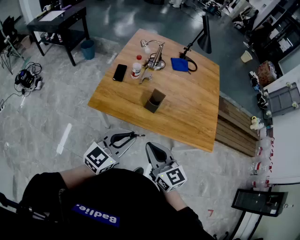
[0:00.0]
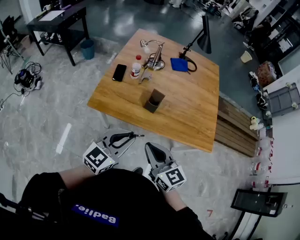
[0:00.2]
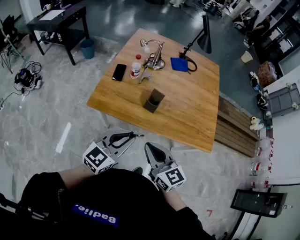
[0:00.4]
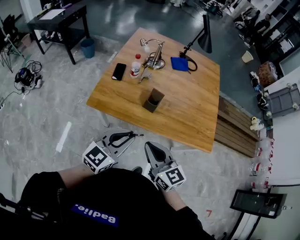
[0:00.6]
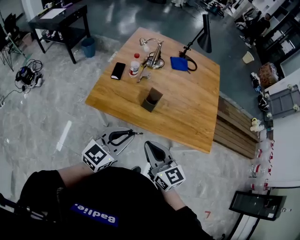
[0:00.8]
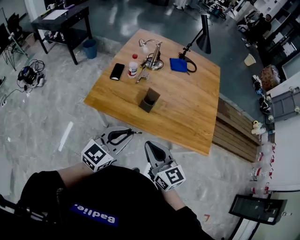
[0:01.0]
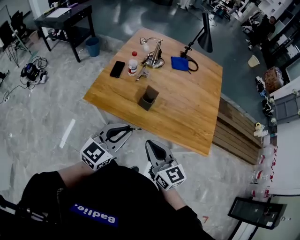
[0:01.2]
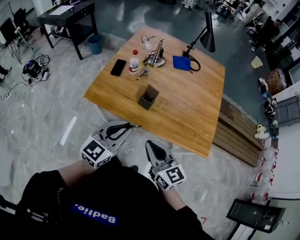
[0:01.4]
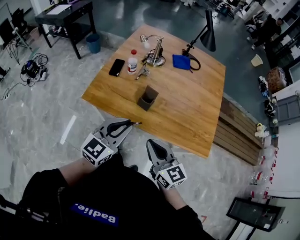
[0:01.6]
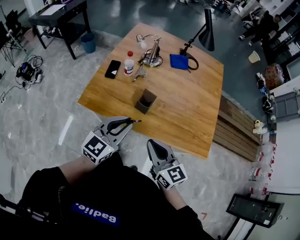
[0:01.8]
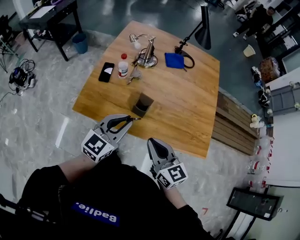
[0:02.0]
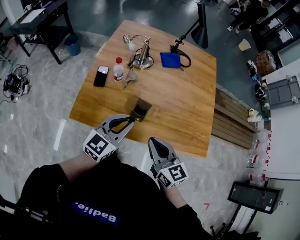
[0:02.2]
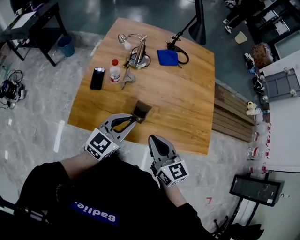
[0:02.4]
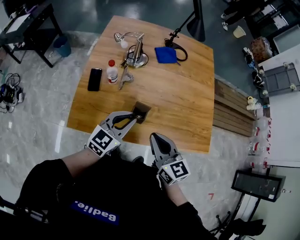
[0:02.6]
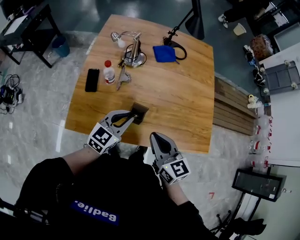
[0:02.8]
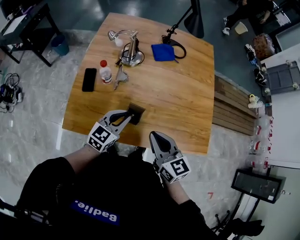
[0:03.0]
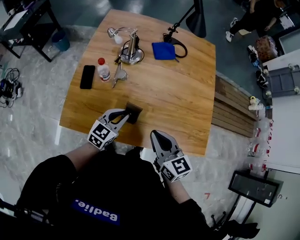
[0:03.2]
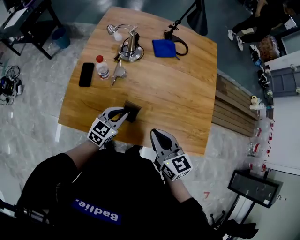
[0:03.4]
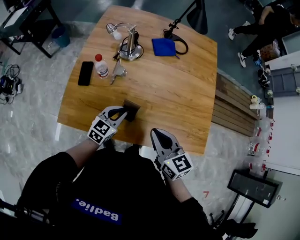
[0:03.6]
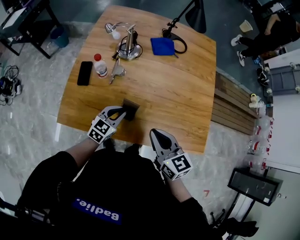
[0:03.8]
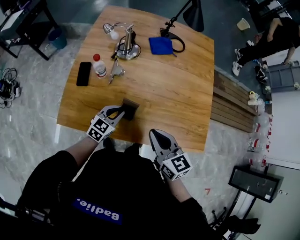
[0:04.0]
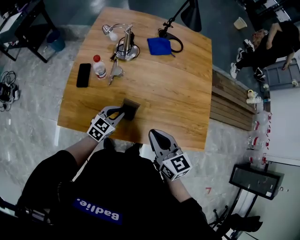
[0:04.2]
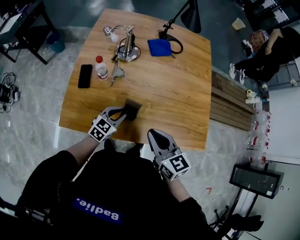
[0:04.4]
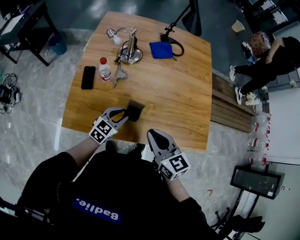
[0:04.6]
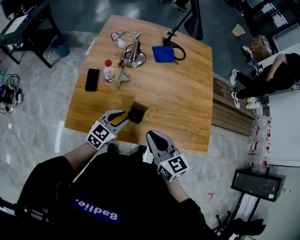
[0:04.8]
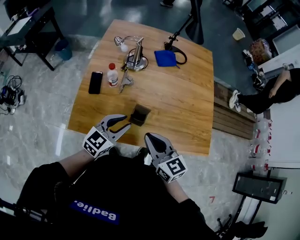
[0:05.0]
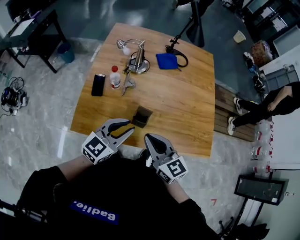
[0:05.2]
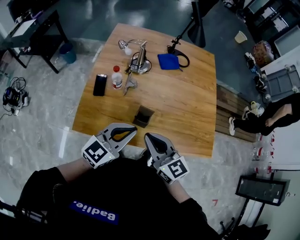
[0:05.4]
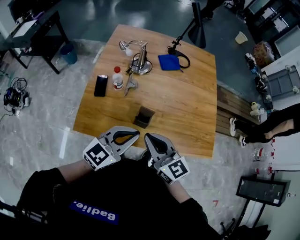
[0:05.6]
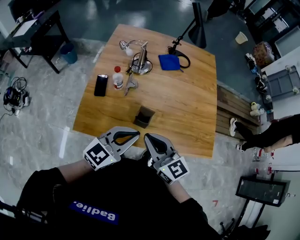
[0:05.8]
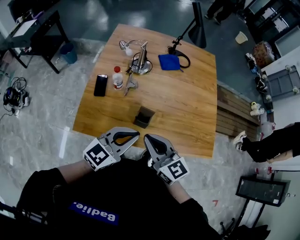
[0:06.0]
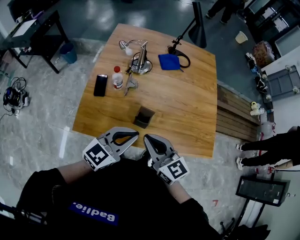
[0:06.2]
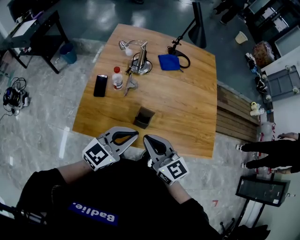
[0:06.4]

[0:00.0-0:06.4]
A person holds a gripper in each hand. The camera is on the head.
0:00.0 to 0:01.6: The left gripper goes about 10 cm to the right and forward. The right gripper is displaced to the right by some 10 cm.
0:01.6 to 0:03.2: The right gripper shifts some 20 cm forward. The left gripper is displaced forward and downward by some 30 cm.
0:03.2 to 0:04.8: The right gripper shifts by approximately 5 cm.
0:04.8 to 0:06.4: The right gripper ends up approximately 5 cm from where it was; the left gripper moves upward and backward, approximately 15 cm, and closes up.

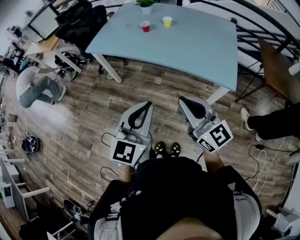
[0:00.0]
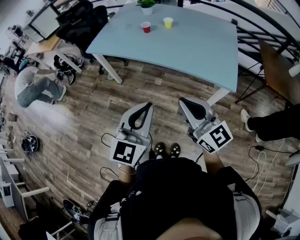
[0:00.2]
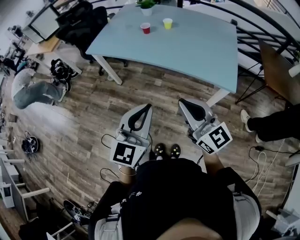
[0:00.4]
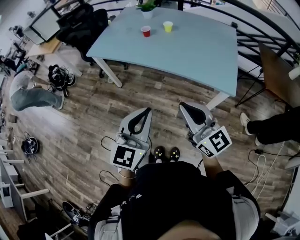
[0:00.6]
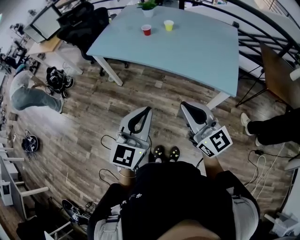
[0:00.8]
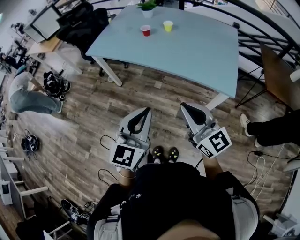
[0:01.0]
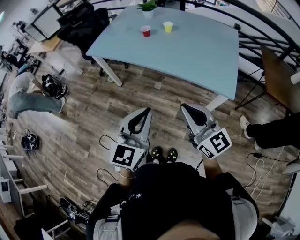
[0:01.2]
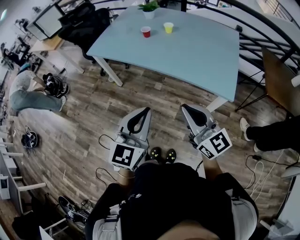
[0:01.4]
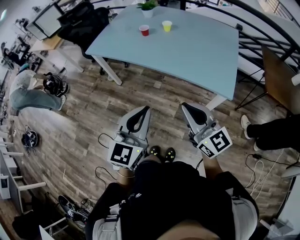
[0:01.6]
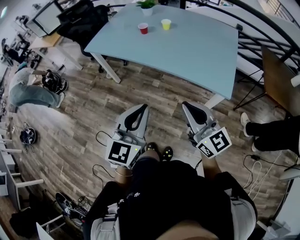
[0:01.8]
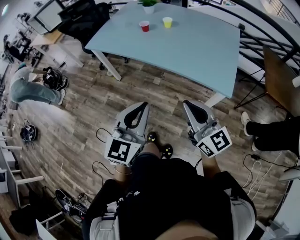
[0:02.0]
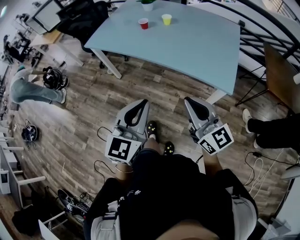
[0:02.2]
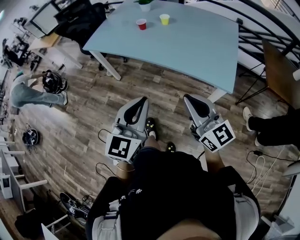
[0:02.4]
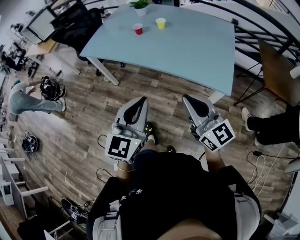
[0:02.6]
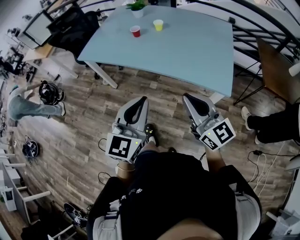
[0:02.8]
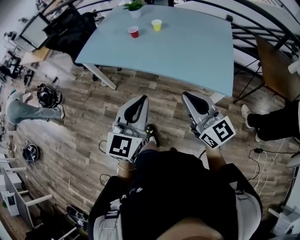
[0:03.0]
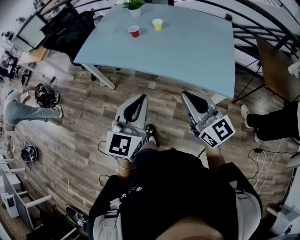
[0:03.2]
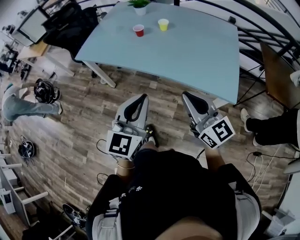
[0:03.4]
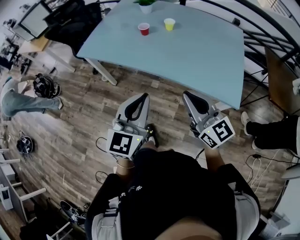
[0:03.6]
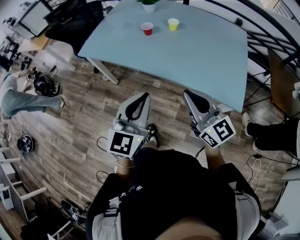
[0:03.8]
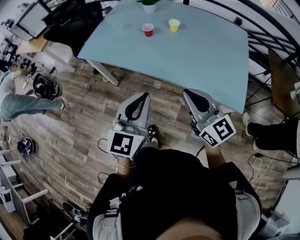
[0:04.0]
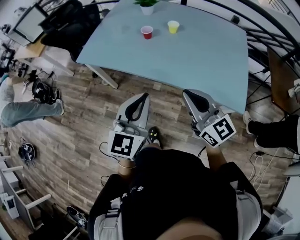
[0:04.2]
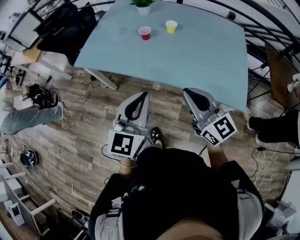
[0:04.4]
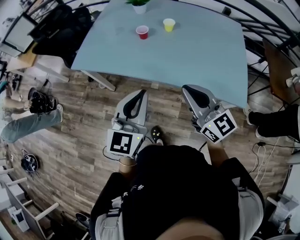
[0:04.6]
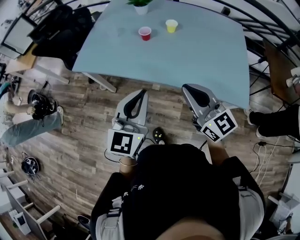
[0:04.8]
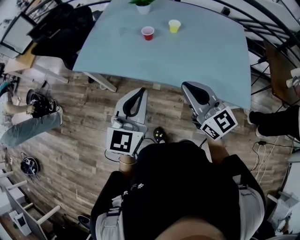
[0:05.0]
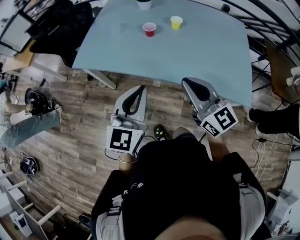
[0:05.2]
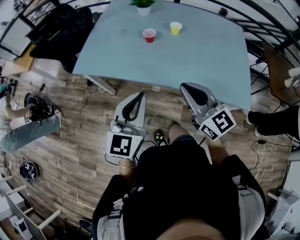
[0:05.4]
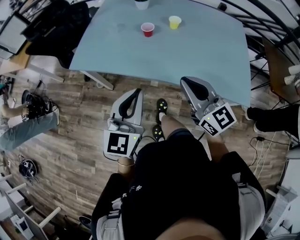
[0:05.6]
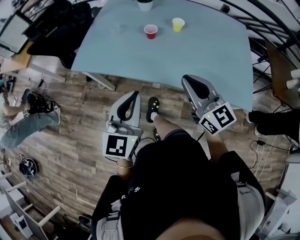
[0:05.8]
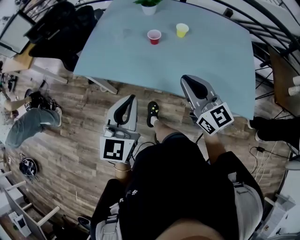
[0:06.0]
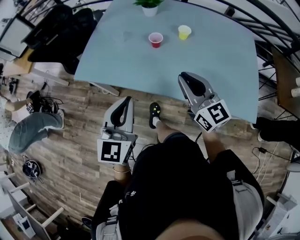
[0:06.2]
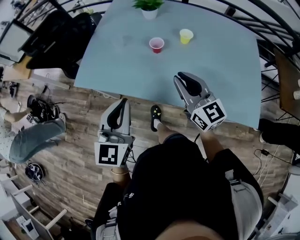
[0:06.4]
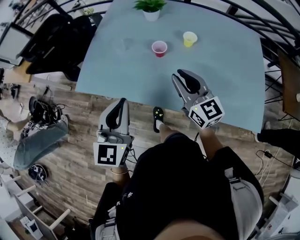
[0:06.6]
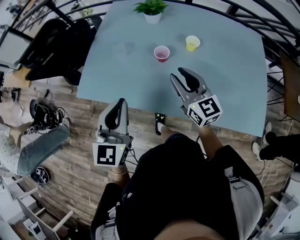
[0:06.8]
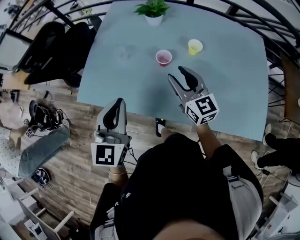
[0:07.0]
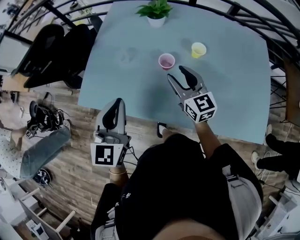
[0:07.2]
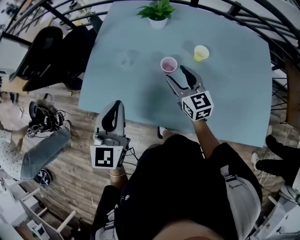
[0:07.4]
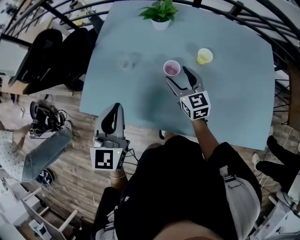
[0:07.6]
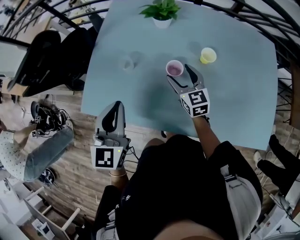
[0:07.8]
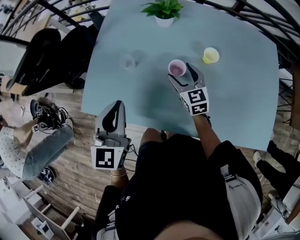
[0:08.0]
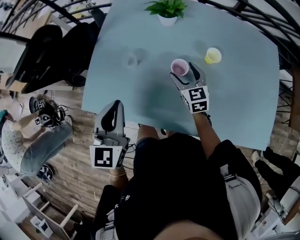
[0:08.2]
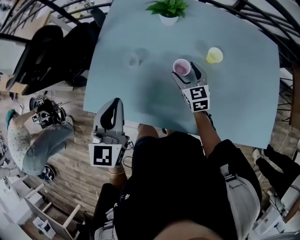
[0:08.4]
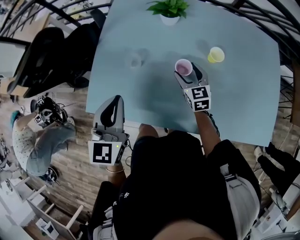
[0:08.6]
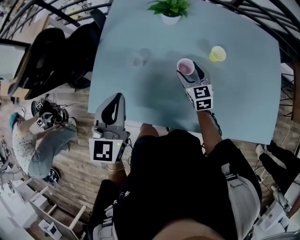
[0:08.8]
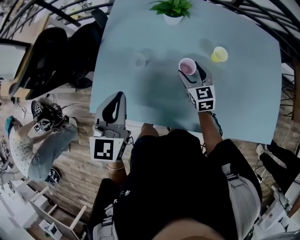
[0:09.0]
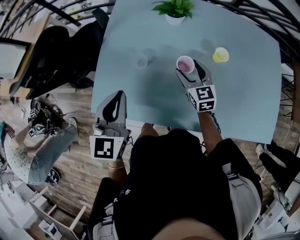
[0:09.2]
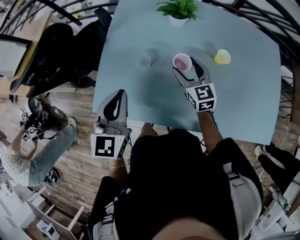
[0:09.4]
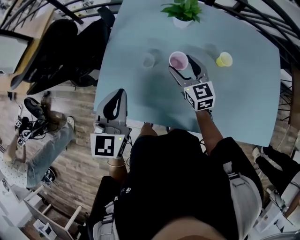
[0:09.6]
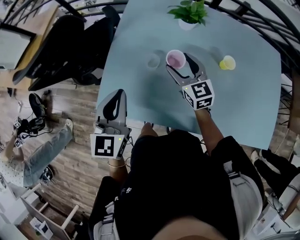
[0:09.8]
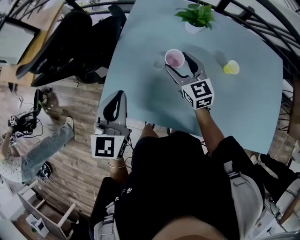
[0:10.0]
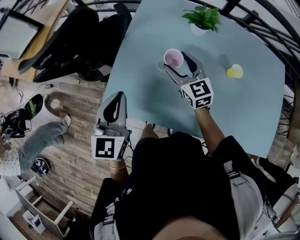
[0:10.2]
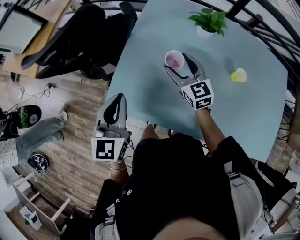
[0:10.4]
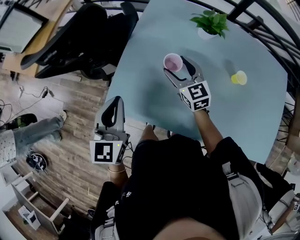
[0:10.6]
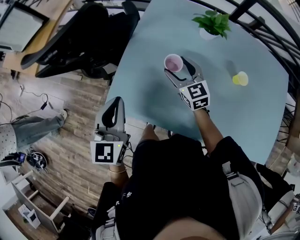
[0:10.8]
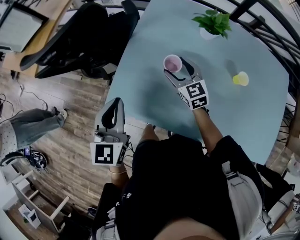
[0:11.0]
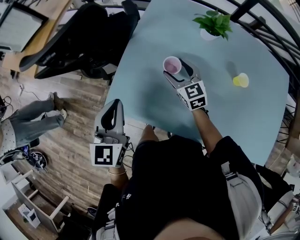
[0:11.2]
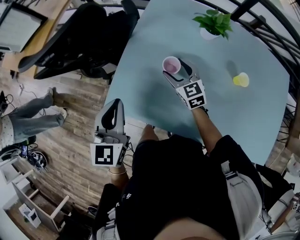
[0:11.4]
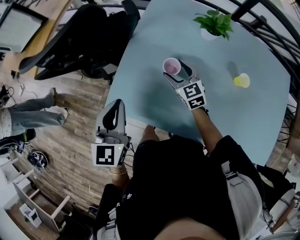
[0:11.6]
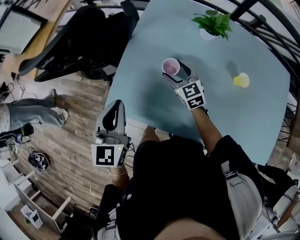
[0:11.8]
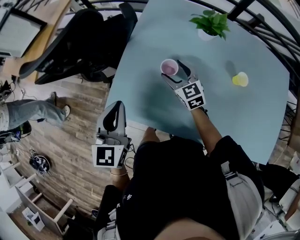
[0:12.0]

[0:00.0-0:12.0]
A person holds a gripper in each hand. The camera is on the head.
0:00.0 to 0:01.6: The right gripper goes some 5 cm to the right.
0:01.6 to 0:03.0: The two grippers go some 5 cm forward.
0:03.0 to 0:04.4: The two grippers go roughly 20 cm forward and to the left.
0:04.4 to 0:06.0: The right gripper heads forward and to the left, covering about 15 cm. Meanwhile the left gripper heads to the left and forward, covering roughly 15 cm.
0:06.0 to 0:07.6: The left gripper moves forward, some 30 cm, while the right gripper is displaced forward and downward by roughly 40 cm, swivels approximately 20 degrees, and opens.
0:07.6 to 0:09.0: The right gripper ends up about 5 cm from where it was; the left gripper heads to the left and forward, covering approximately 10 cm.
0:09.0 to 0:10.4: The left gripper shifts roughly 10 cm to the left. The right gripper travels to the left and upward by roughly 20 cm, and swivels approximately 20 degrees.
0:10.4 to 0:12.0: The right gripper shifts roughly 5 cm downward.

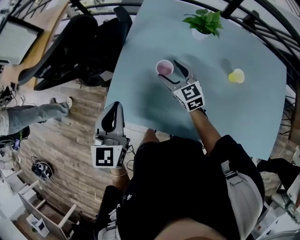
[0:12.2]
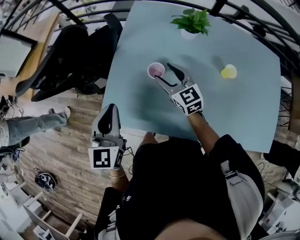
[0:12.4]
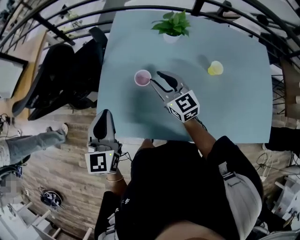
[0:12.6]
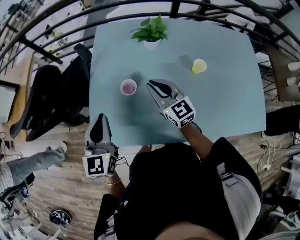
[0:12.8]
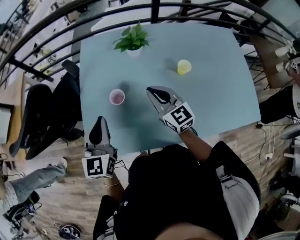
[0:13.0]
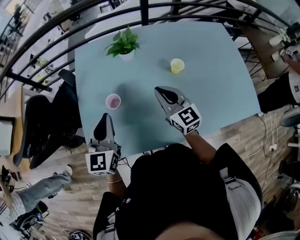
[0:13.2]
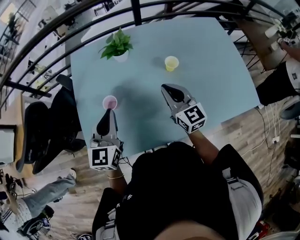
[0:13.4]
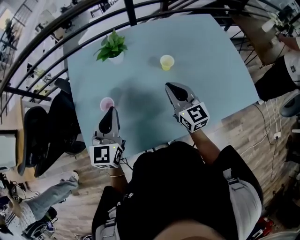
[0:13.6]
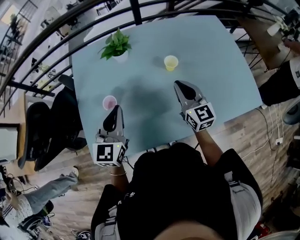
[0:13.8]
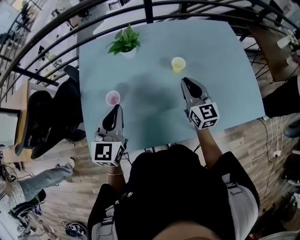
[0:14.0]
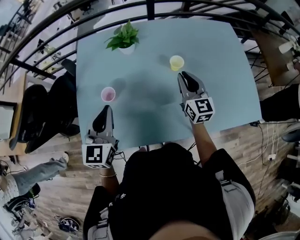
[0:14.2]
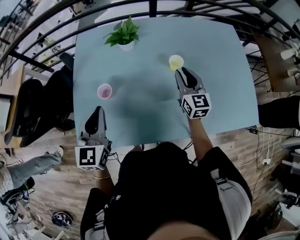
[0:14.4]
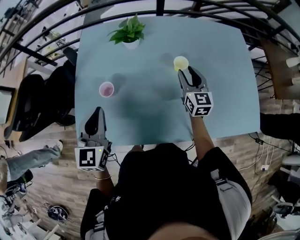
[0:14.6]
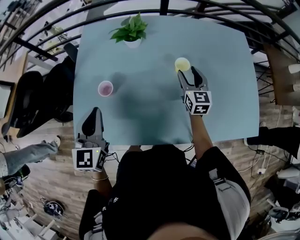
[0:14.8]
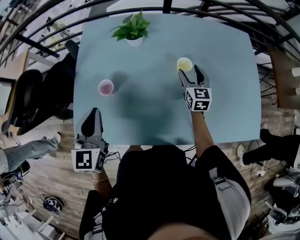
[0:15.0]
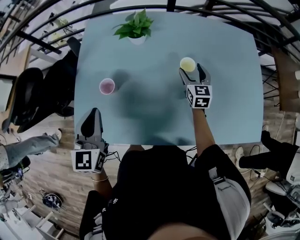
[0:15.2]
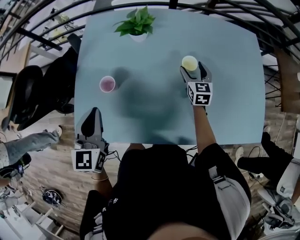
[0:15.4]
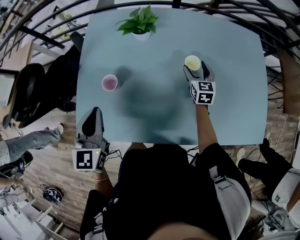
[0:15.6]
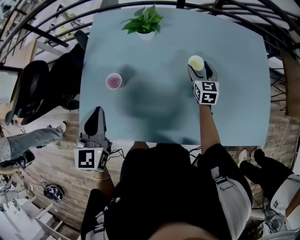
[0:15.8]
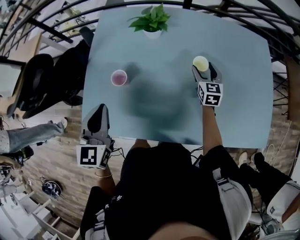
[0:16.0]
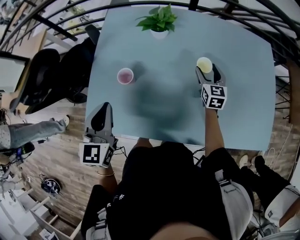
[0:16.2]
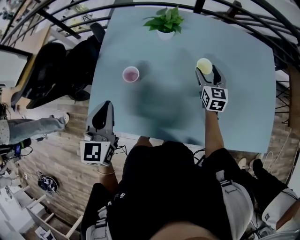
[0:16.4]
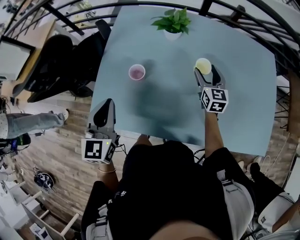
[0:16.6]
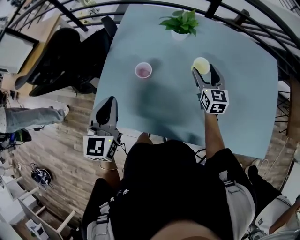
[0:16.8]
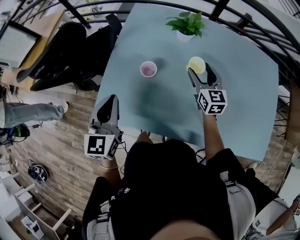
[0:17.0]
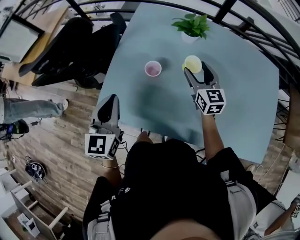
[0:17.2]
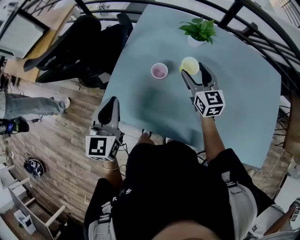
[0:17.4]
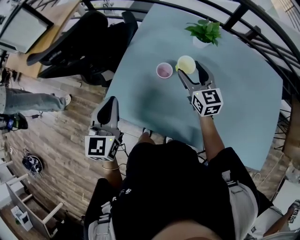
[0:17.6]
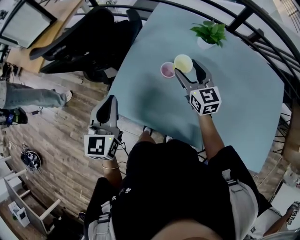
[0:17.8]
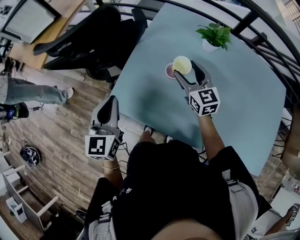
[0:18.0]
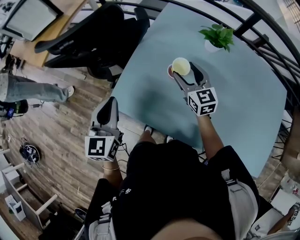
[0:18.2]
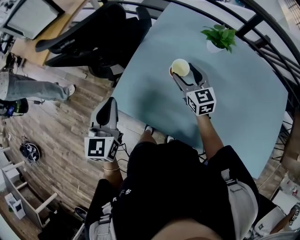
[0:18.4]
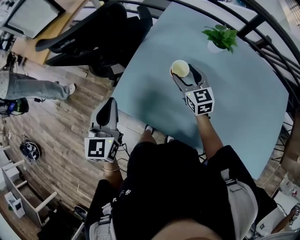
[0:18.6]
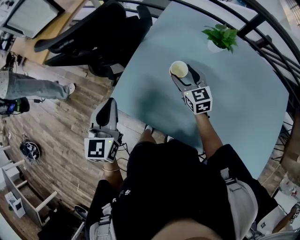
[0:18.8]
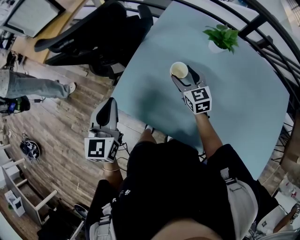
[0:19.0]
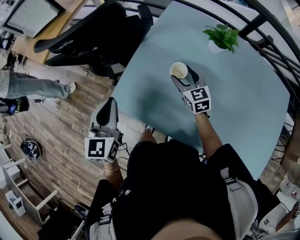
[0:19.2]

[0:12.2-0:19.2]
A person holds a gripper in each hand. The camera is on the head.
0:12.2 to 0:13.6: The right gripper shifts by about 30 cm, changes its angle by roughly 40 degrees, and closes; the left gripper ends up about 20 cm from where it was, and turns by approximately 30 degrees.
0:13.6 to 0:15.0: The left gripper swivels approximately 20 degrees. The right gripper goes about 20 cm forward, downward and to the right, and opens its fingers.
0:15.0 to 0:16.4: The left gripper moves approximately 5 cm.
0:16.4 to 0:17.8: The left gripper shifts about 15 cm to the left. Meanwhile the right gripper goes some 30 cm to the left, and rotates about 30 degrees.
0:17.8 to 0:19.2: The right gripper goes roughly 10 cm downward.
